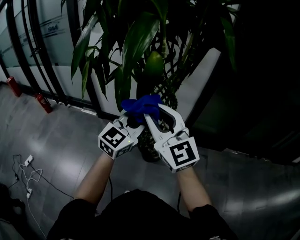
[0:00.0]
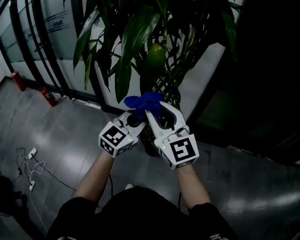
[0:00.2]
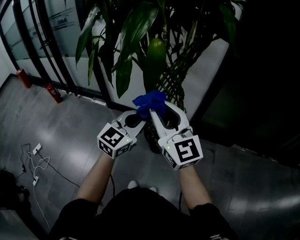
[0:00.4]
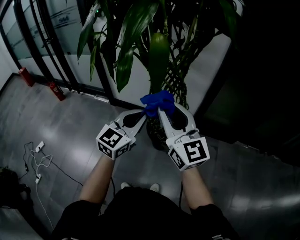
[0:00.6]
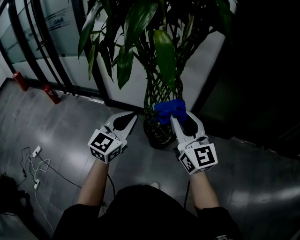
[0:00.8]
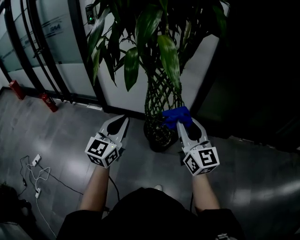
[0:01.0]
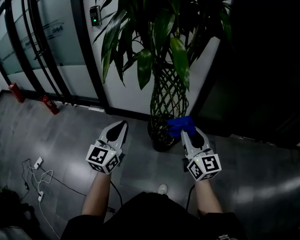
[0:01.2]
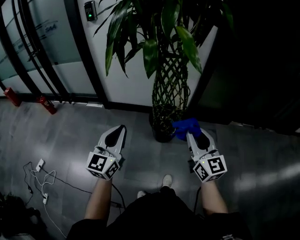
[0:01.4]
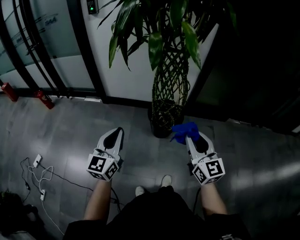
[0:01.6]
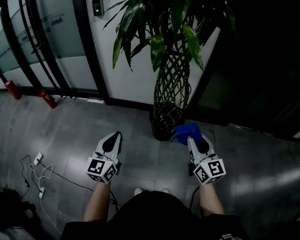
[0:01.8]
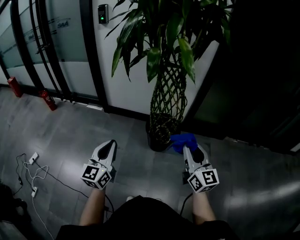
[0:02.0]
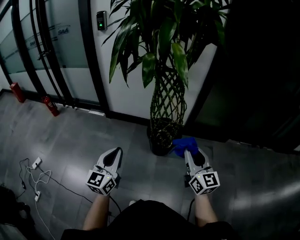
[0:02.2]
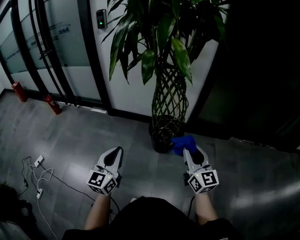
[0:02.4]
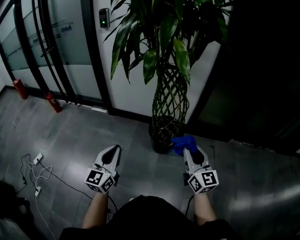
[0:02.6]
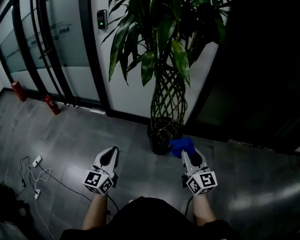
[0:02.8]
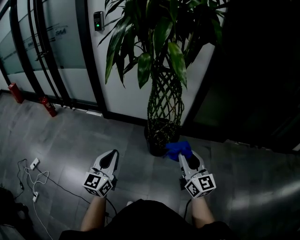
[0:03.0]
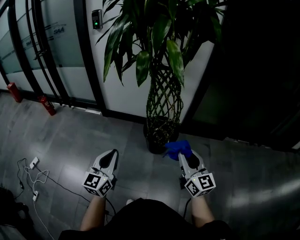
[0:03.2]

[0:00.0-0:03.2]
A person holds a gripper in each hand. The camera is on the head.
0:00.0 to 0:01.6: The right gripper moves backward and downward, approximately 25 cm, and swivels some 30 degrees, while the left gripper travels to the left and backward by some 30 cm, and rotates about 30 degrees.
0:01.6 to 0:03.2: The right gripper moves to the right, about 5 cm. Meanwhile the left gripper shifts by approximately 5 cm.

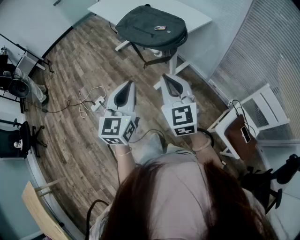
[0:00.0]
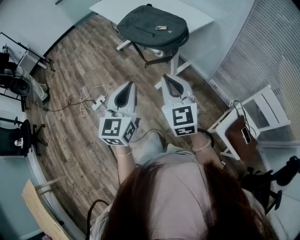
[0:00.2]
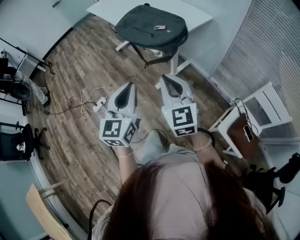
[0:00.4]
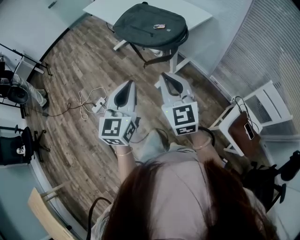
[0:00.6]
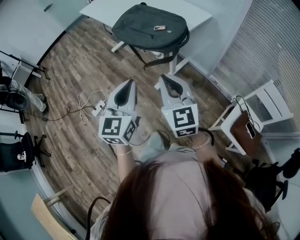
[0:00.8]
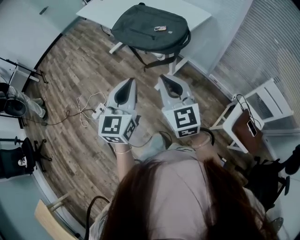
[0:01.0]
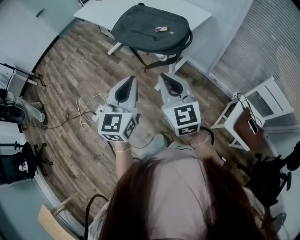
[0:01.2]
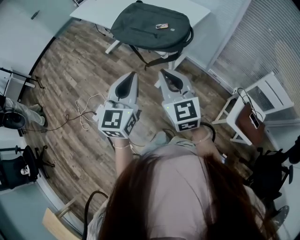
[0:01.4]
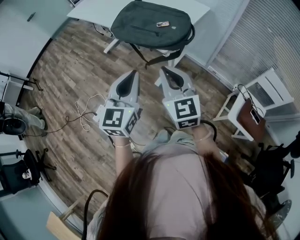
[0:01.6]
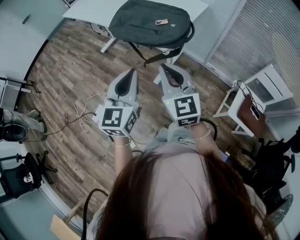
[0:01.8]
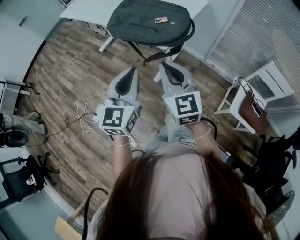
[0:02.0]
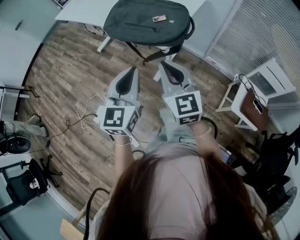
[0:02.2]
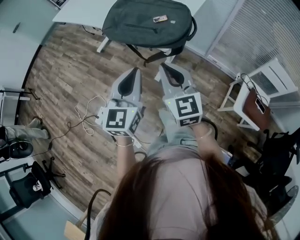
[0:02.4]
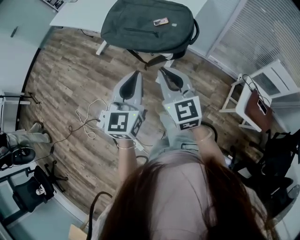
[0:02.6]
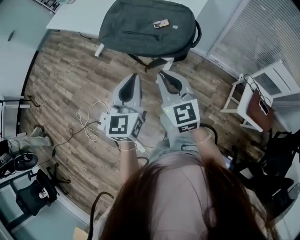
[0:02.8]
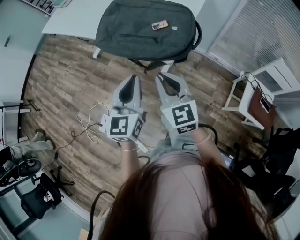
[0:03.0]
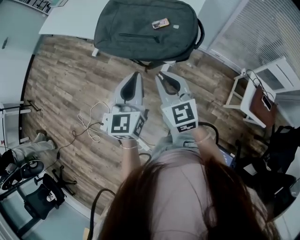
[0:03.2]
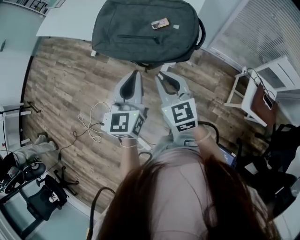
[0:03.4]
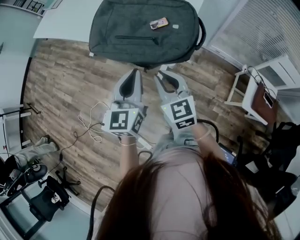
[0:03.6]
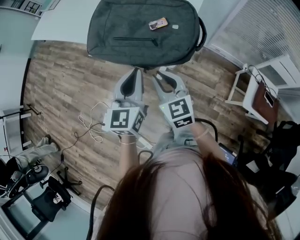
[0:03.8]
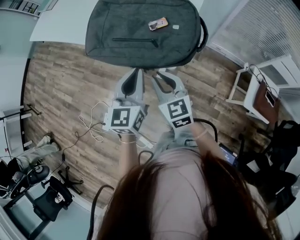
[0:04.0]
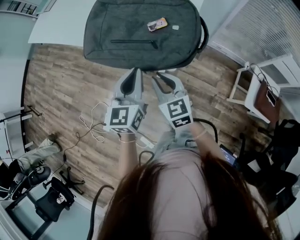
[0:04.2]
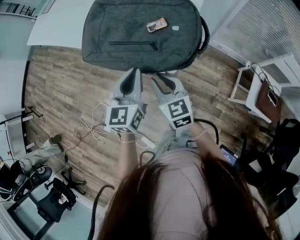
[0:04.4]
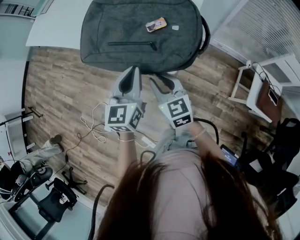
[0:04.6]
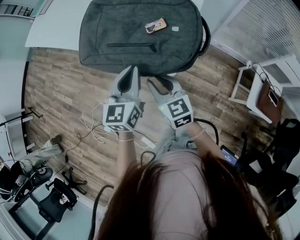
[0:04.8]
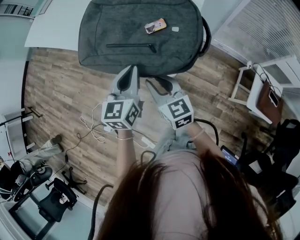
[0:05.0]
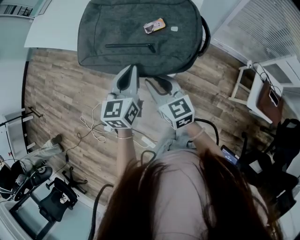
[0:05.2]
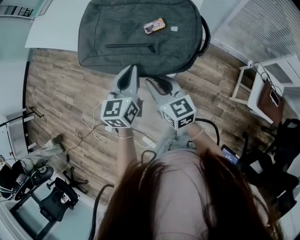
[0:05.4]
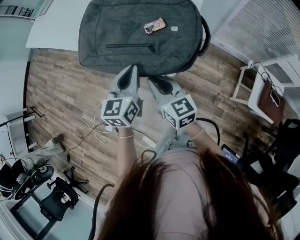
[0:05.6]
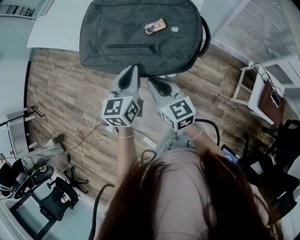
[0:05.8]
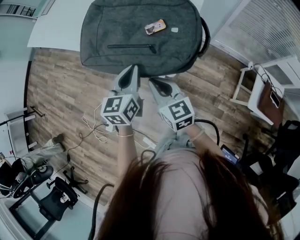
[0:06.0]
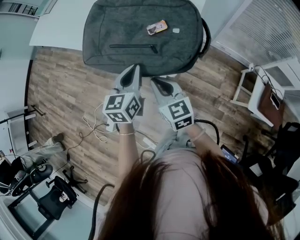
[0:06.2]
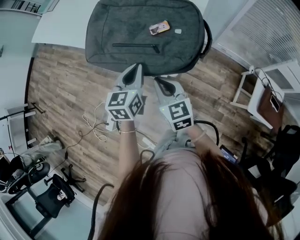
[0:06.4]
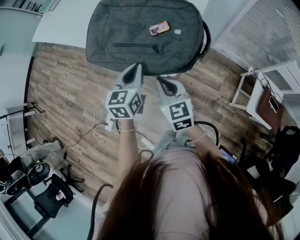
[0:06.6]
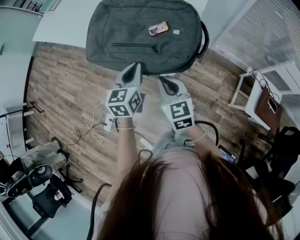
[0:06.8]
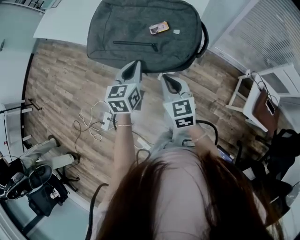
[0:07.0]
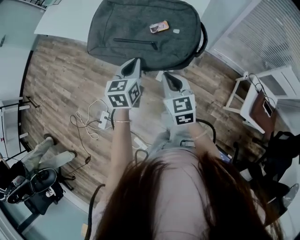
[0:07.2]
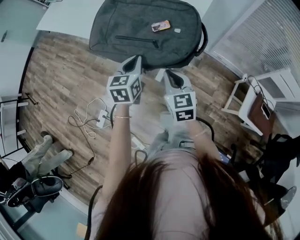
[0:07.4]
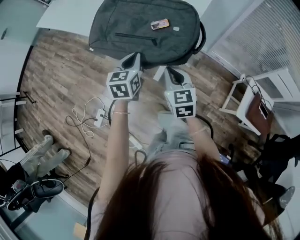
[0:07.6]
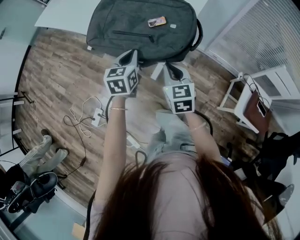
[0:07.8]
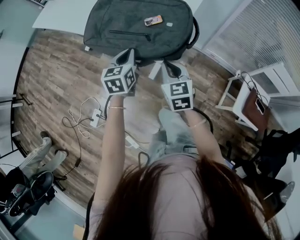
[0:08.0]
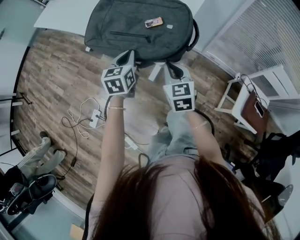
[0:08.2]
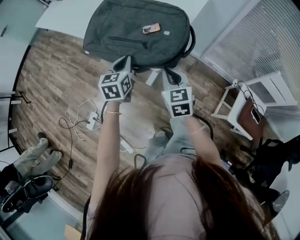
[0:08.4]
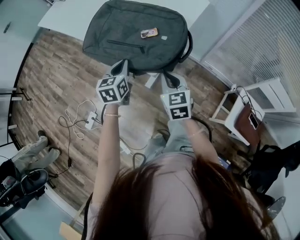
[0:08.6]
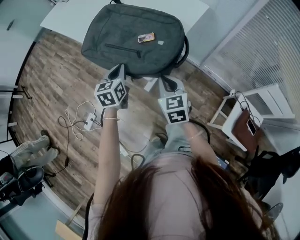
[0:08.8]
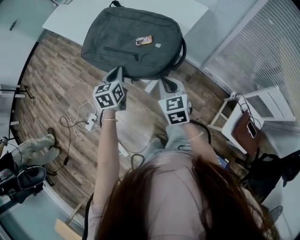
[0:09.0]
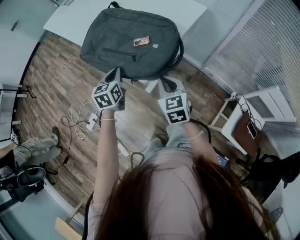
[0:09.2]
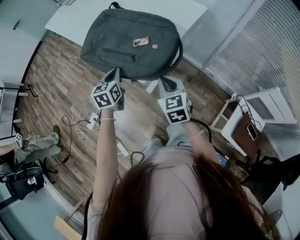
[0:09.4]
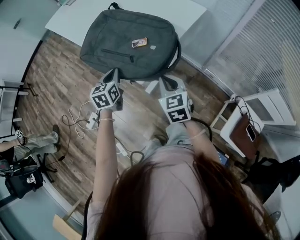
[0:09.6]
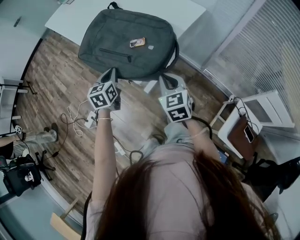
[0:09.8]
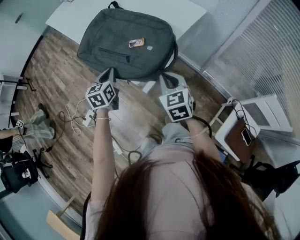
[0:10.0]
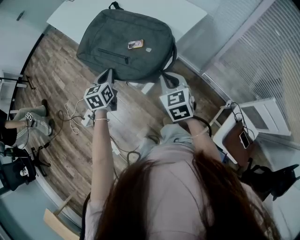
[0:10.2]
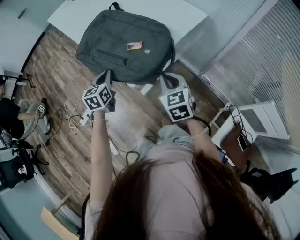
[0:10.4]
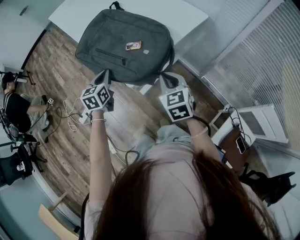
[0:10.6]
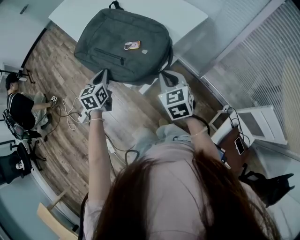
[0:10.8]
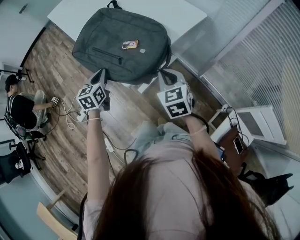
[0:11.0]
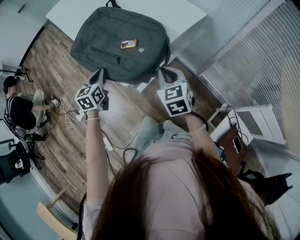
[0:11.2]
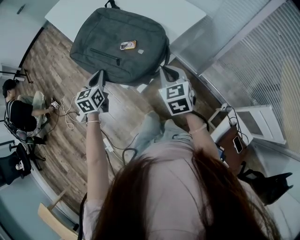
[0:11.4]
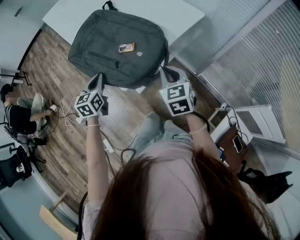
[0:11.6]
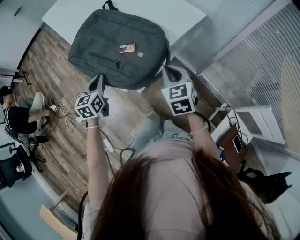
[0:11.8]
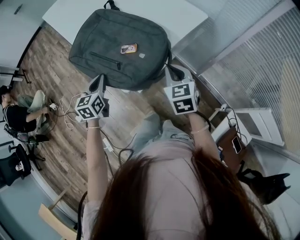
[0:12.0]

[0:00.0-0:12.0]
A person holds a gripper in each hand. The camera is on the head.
0:00.0 to 0:01.6: The right gripper travels to the left and forward by approximately 15 cm. The left gripper travels forward and to the left by roughly 15 cm.
0:01.6 to 0:03.0: Both grippers travel together forward and downward, some 15 cm.
0:03.0 to 0:04.4: The left gripper goes some 15 cm forward and downward, while the right gripper shifts about 15 cm downward and forward.
0:04.4 to 0:06.0: The grippers stay close to where they were, moving slightly.
0:06.0 to 0:07.6: The right gripper heads to the right, covering some 5 cm.
0:07.6 to 0:09.0: The right gripper travels to the right by roughly 5 cm.
0:09.0 to 0:10.4: The right gripper moves to the right, approximately 10 cm.
0:10.4 to 0:12.0: The right gripper heads forward and to the right, covering some 10 cm.

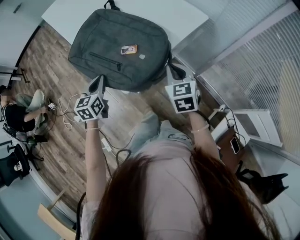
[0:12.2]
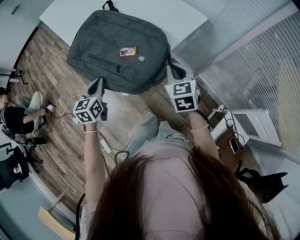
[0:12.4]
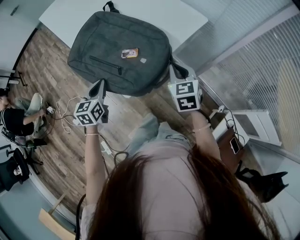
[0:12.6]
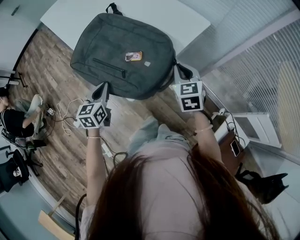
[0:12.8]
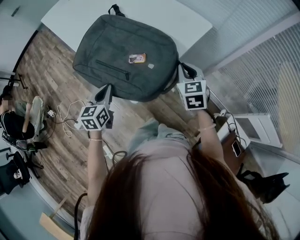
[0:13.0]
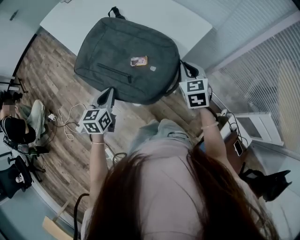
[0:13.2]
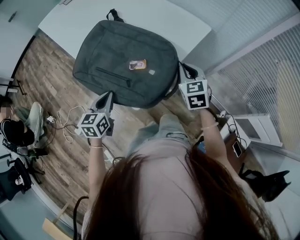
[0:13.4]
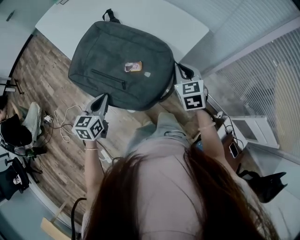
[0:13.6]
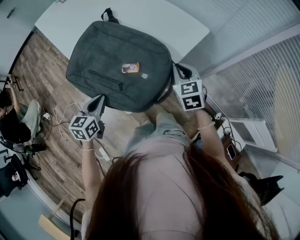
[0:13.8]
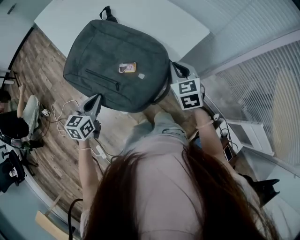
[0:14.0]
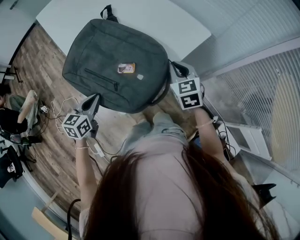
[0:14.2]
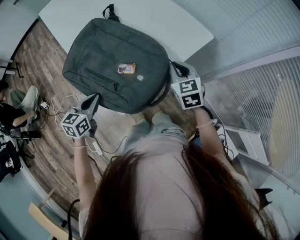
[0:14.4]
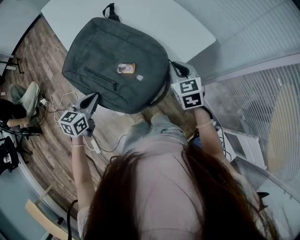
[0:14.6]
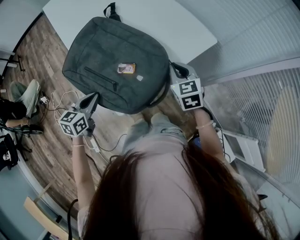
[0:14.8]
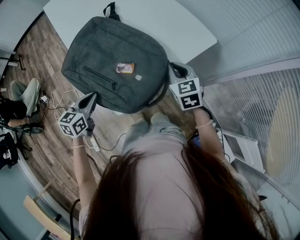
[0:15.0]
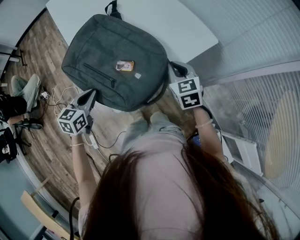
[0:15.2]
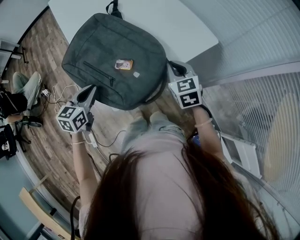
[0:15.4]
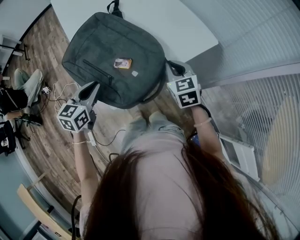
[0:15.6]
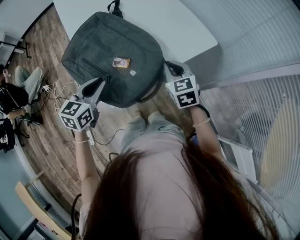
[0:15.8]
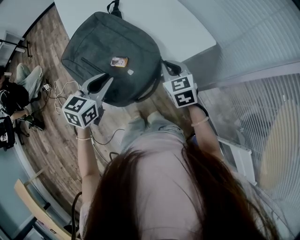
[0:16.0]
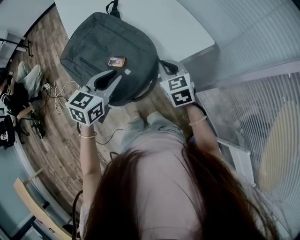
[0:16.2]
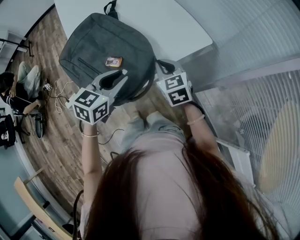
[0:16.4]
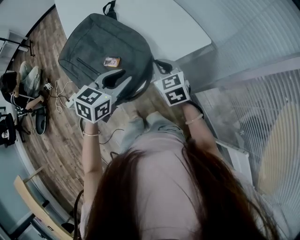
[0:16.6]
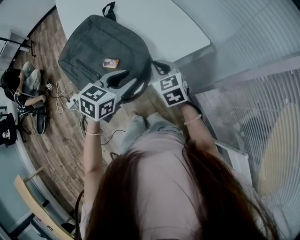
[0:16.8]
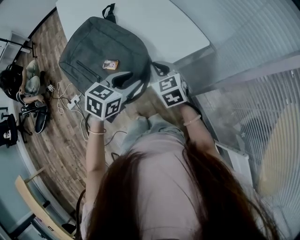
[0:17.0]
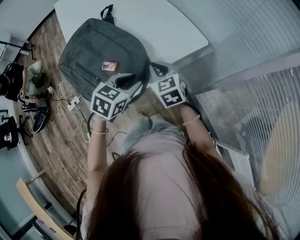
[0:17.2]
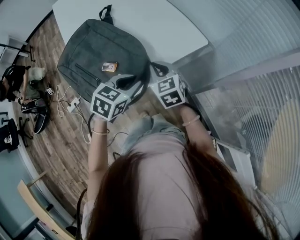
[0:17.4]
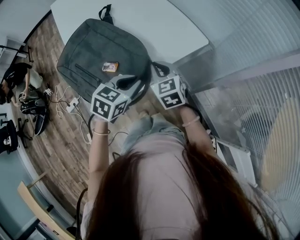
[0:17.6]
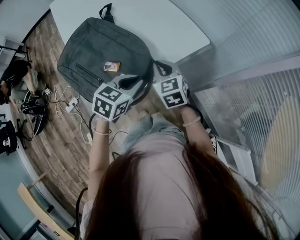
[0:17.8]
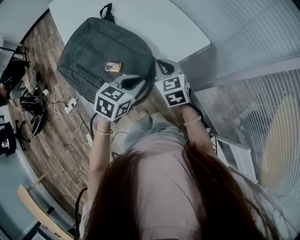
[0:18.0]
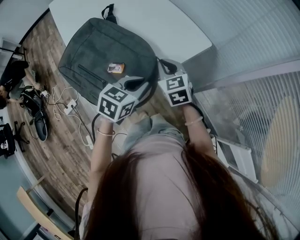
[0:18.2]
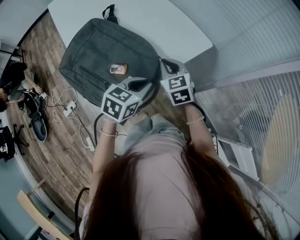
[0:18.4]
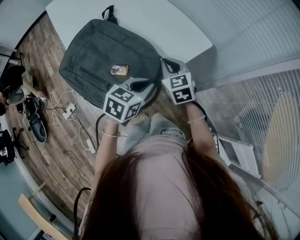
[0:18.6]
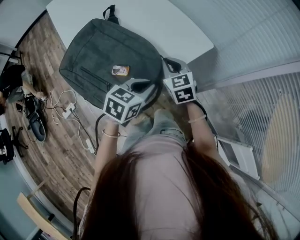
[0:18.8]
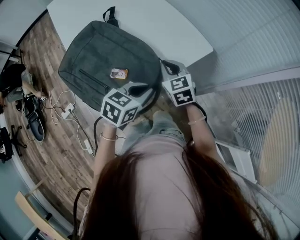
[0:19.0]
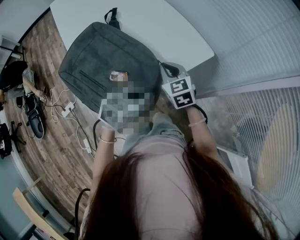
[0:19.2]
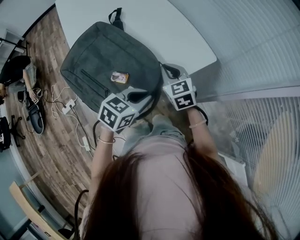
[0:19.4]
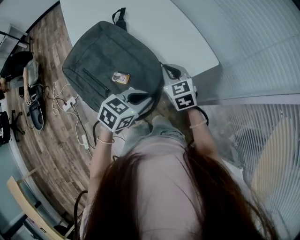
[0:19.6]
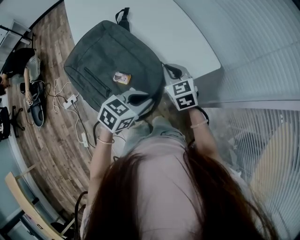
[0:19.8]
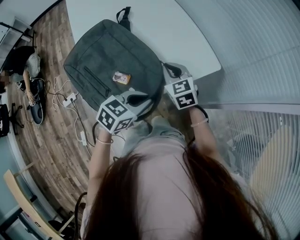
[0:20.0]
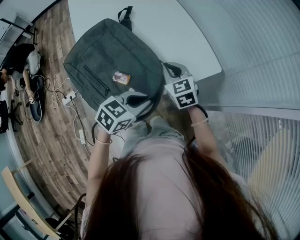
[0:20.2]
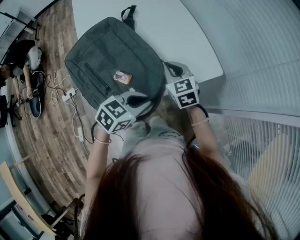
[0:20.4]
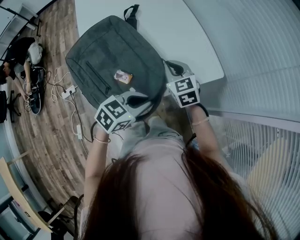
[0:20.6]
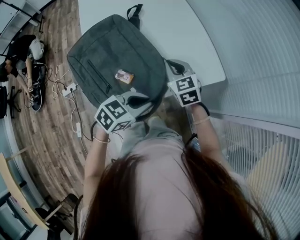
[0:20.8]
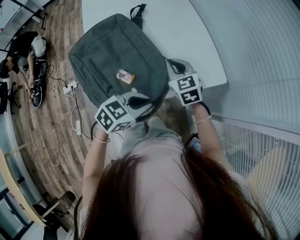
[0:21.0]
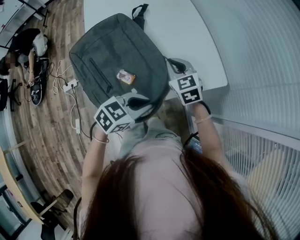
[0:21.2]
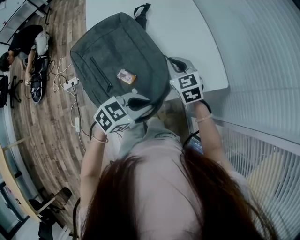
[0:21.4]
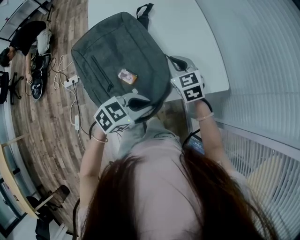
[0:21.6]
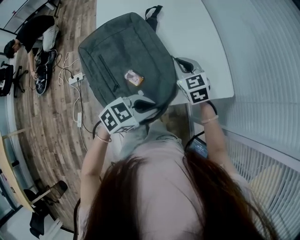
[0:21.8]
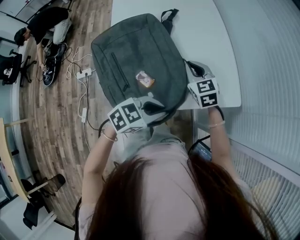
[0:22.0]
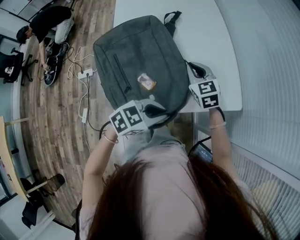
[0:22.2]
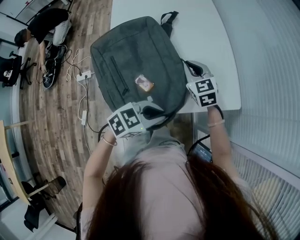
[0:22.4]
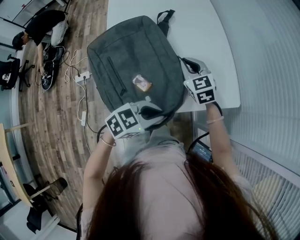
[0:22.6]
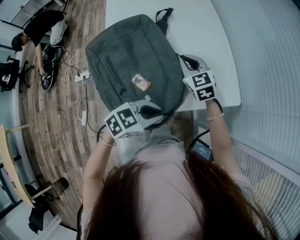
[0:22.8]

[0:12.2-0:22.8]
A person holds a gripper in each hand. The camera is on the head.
0:12.2 to 0:13.8: The right gripper is displaced forward by roughly 10 cm.
0:13.8 to 0:15.2: The grippers move only a little.
0:15.2 to 0:16.8: The left gripper travels to the right by roughly 25 cm, and opens up.
0:16.8 to 0:18.2: The left gripper closes its fingers.
0:18.2 to 0:19.8: The right gripper changes place by about 5 cm.
0:19.8 to 0:21.2: The right gripper ends up approximately 5 cm from where it was.
0:21.2 to 0:22.8: The right gripper ends up some 5 cm from where it was.
